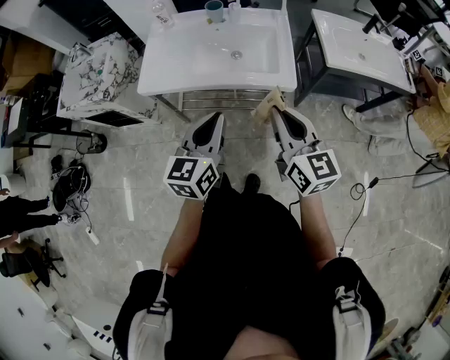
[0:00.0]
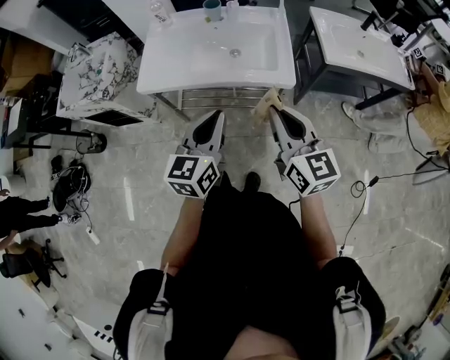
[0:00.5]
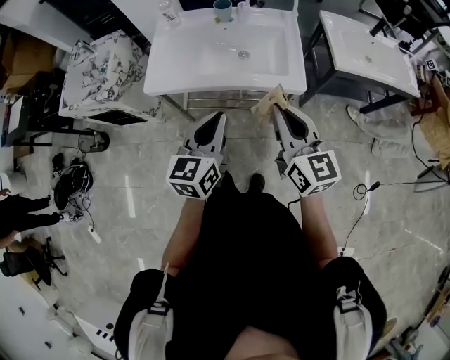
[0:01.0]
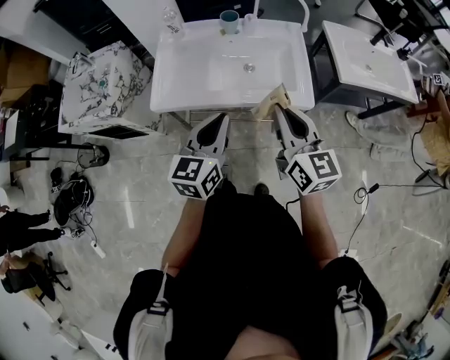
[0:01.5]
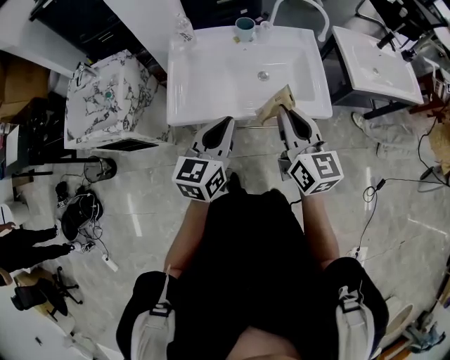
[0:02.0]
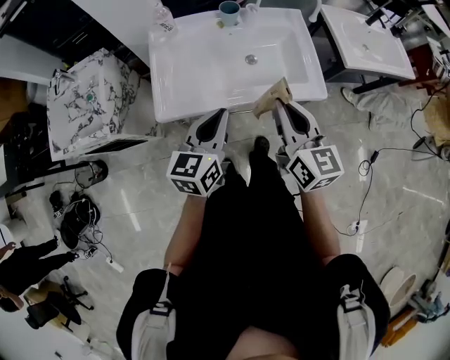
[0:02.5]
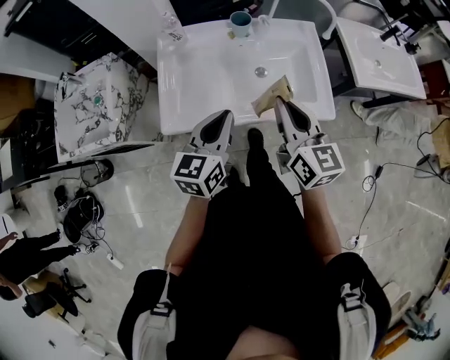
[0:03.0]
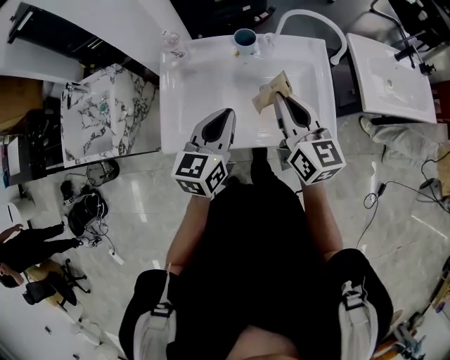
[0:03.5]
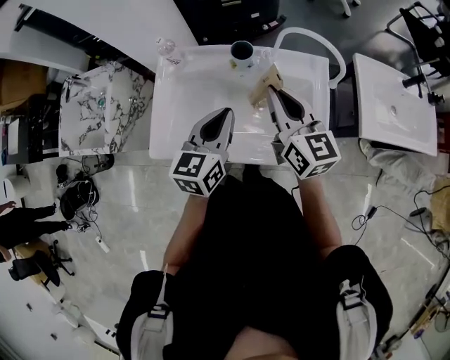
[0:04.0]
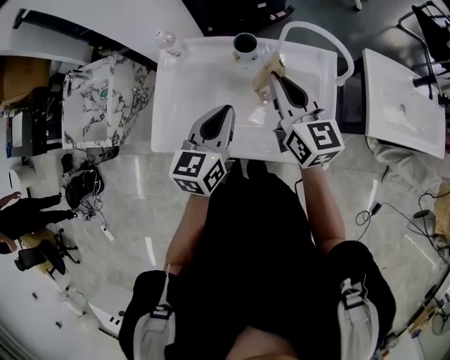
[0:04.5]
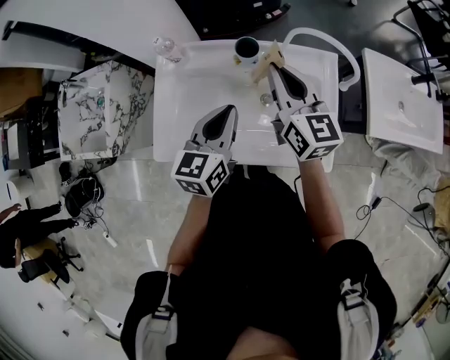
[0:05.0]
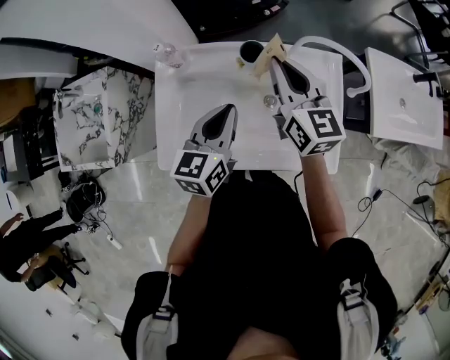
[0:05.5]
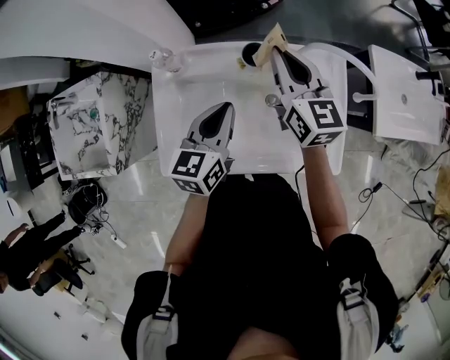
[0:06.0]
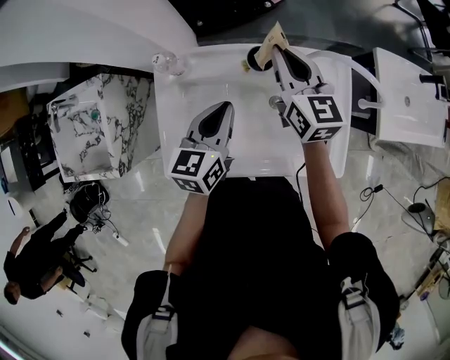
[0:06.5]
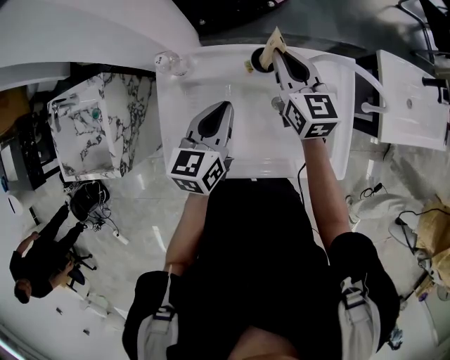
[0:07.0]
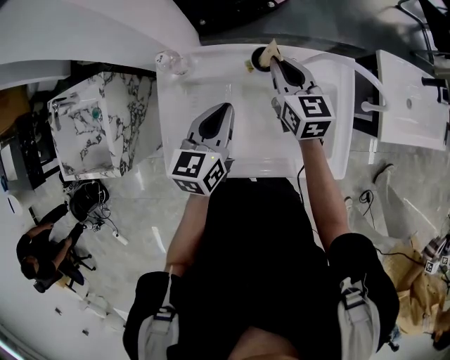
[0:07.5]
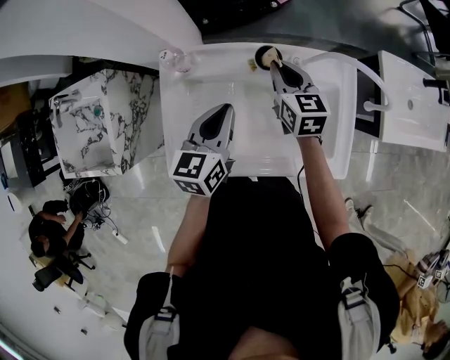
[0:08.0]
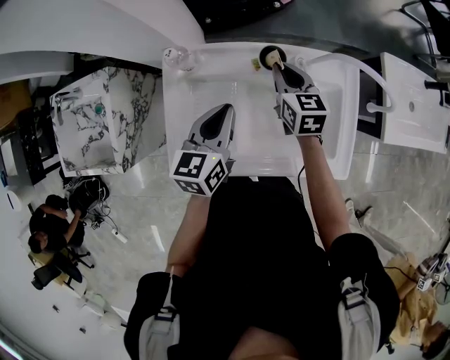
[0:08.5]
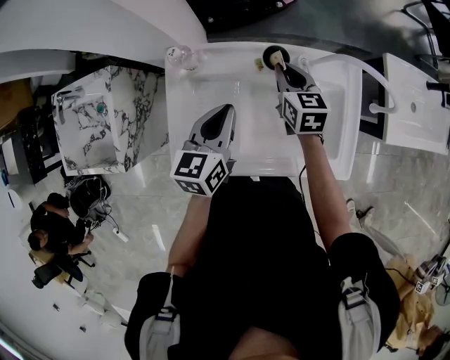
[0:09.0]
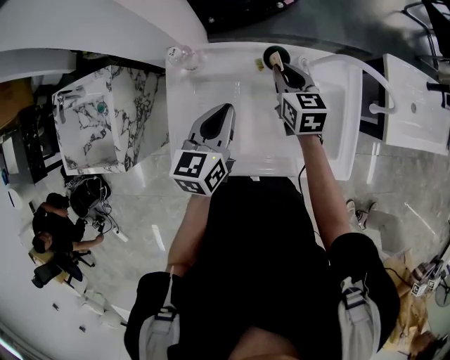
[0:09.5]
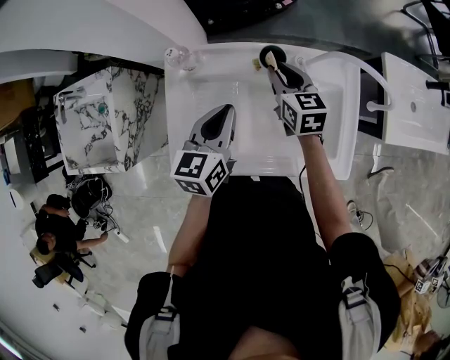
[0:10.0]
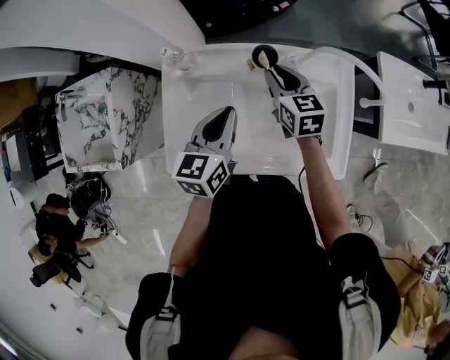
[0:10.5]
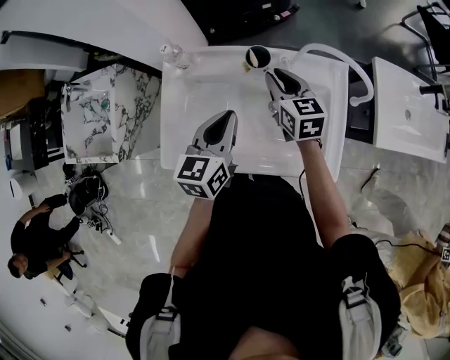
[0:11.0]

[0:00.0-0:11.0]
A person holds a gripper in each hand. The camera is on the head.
0.0 to 2.0 s: Both grippers move to the left and forward, approximately 20 cm.
2.0 to 3.5 s: Both grippers travel together forward, roughly 20 cm.
3.5 to 5.5 s: The right gripper shifts some 20 cm forward, while the left gripper goes about 10 cm forward.
5.5 to 7.5 s: The right gripper goes about 10 cm downward and forward. Meanwhile the left gripper changes place by about 5 cm.
7.5 to 9.0 s: The right gripper is displaced downward by some 5 cm.
9.0 to 11.0 s: The left gripper travels to the right by roughly 5 cm; the right gripper moves roughly 5 cm.

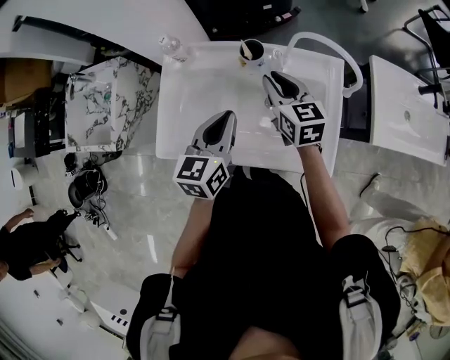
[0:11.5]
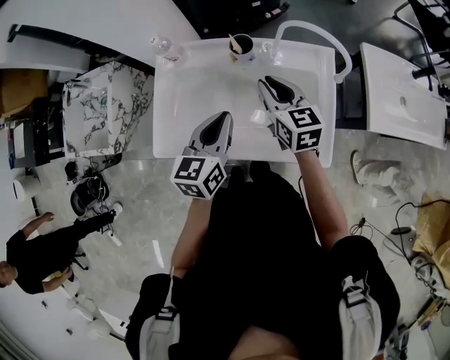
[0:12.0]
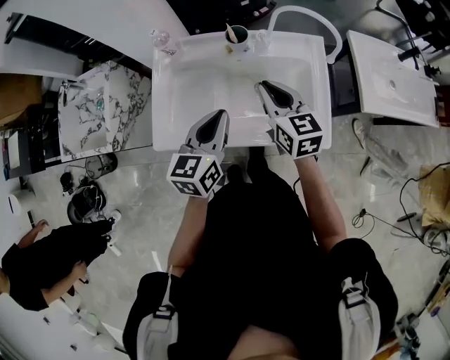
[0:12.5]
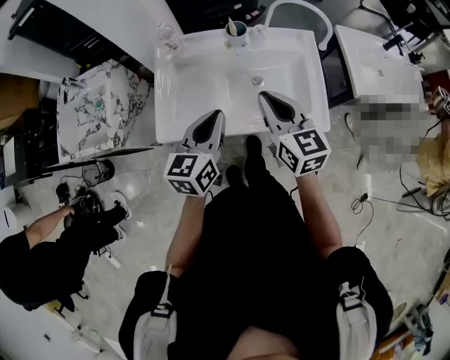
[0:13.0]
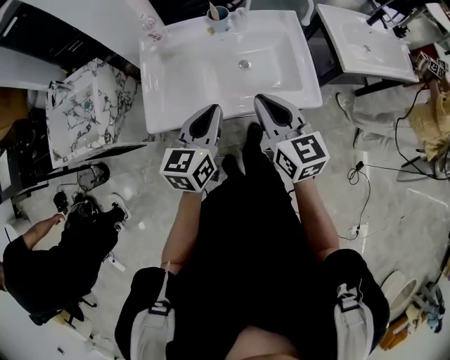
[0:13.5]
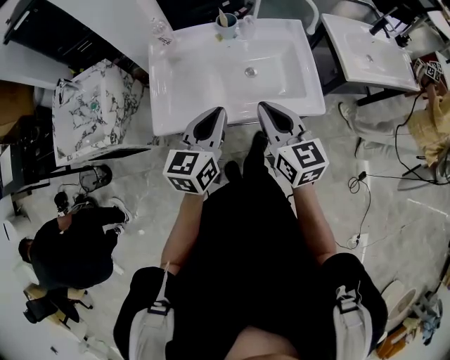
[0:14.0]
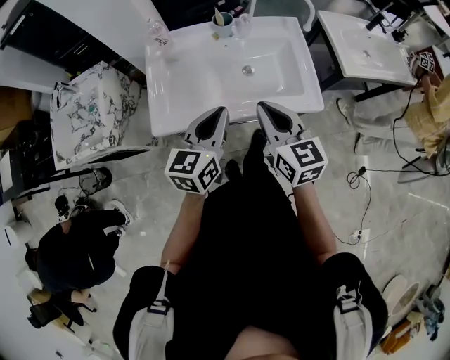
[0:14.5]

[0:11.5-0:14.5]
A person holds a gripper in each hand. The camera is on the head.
11.5 to 13.0 s: The left gripper shifts roughly 15 cm backward, while the right gripper heads backward and upward, covering approximately 25 cm.
13.0 to 14.5 s: The left gripper moves backward, some 5 cm; the right gripper travels backward by approximately 10 cm.

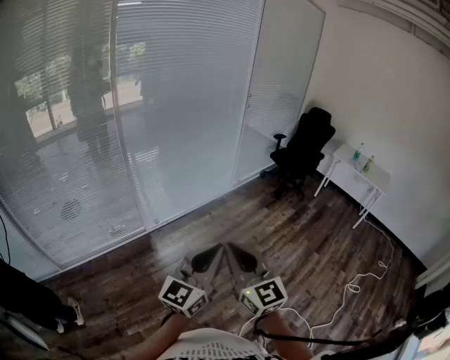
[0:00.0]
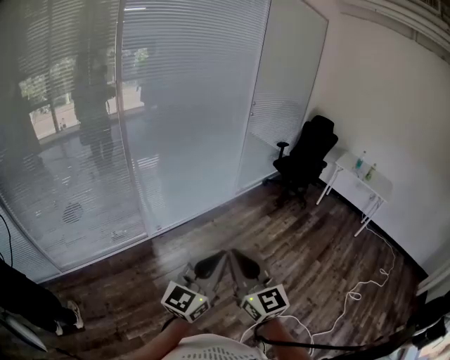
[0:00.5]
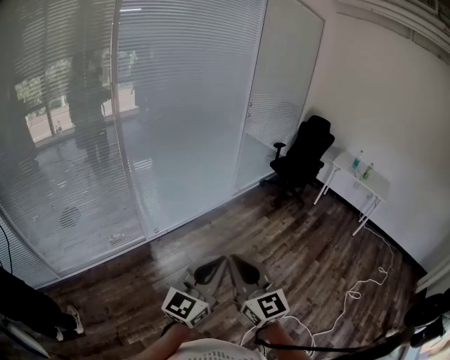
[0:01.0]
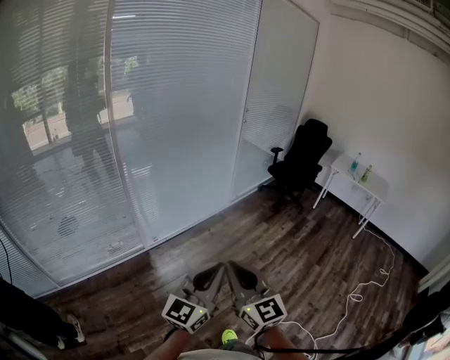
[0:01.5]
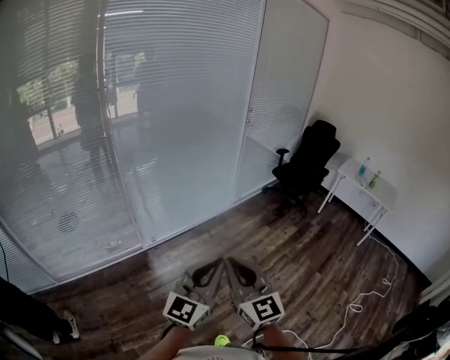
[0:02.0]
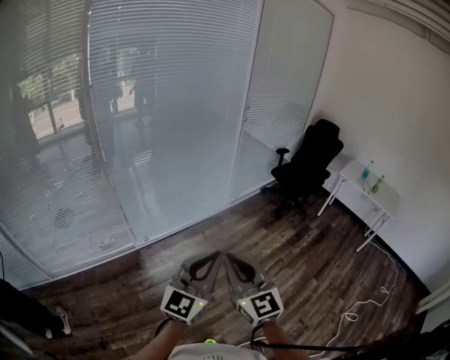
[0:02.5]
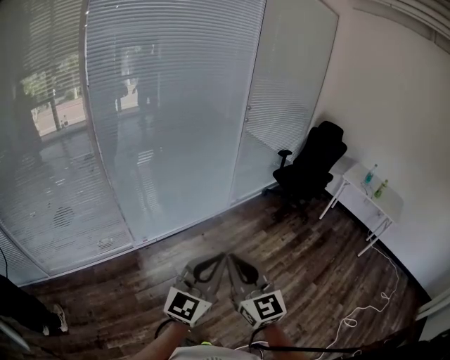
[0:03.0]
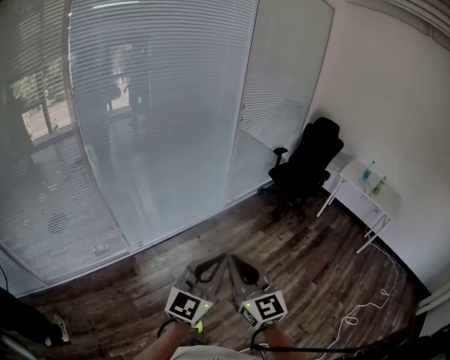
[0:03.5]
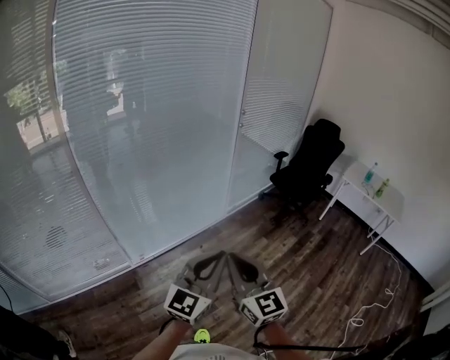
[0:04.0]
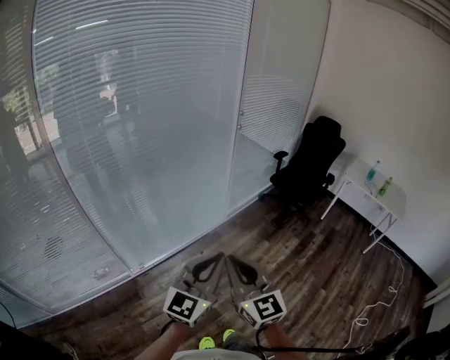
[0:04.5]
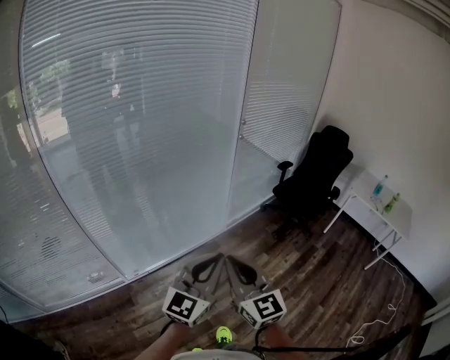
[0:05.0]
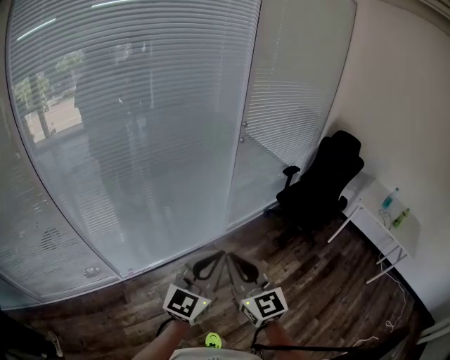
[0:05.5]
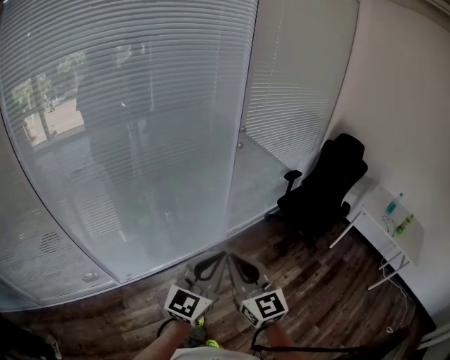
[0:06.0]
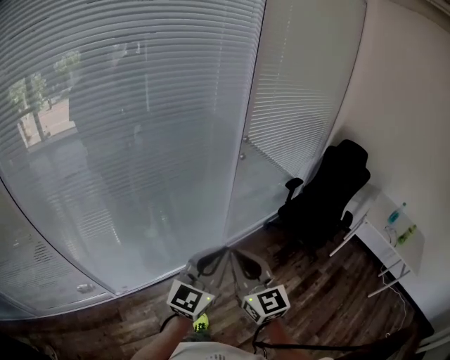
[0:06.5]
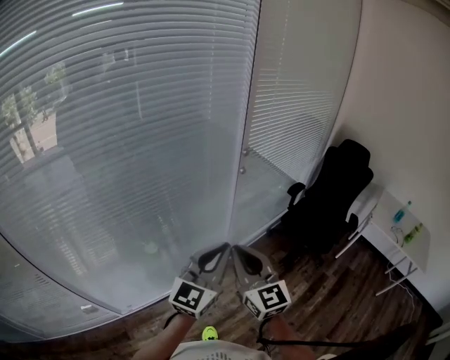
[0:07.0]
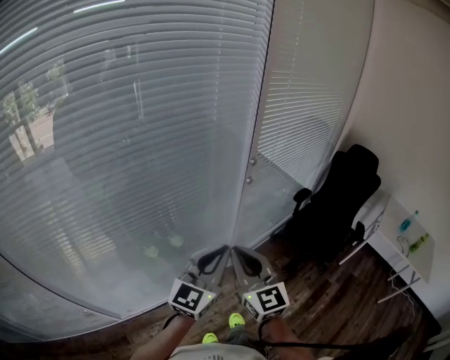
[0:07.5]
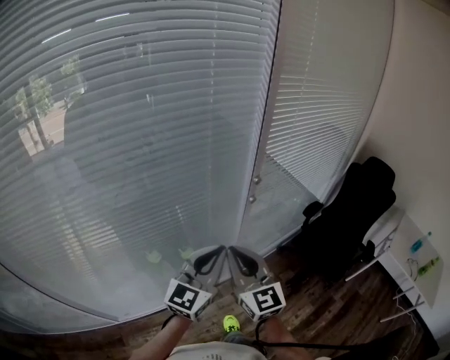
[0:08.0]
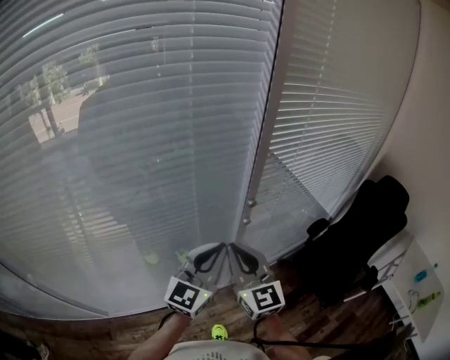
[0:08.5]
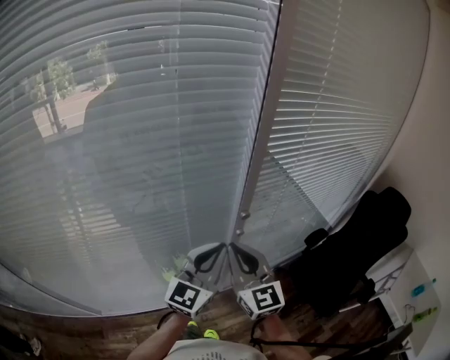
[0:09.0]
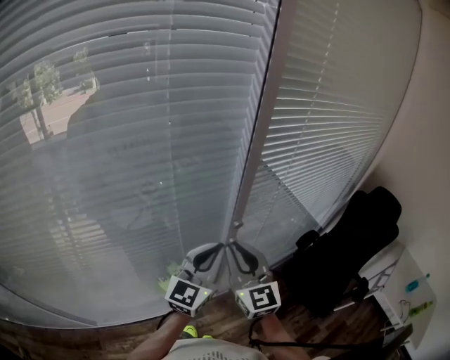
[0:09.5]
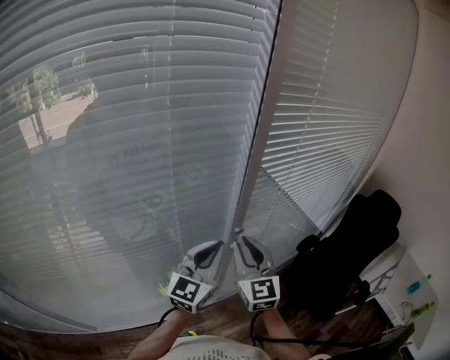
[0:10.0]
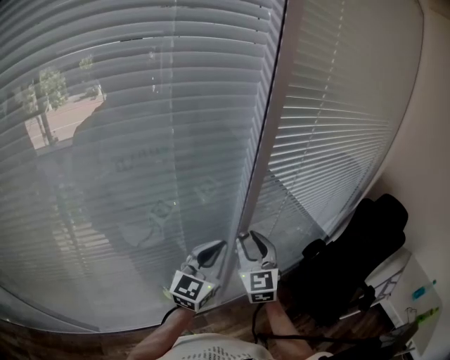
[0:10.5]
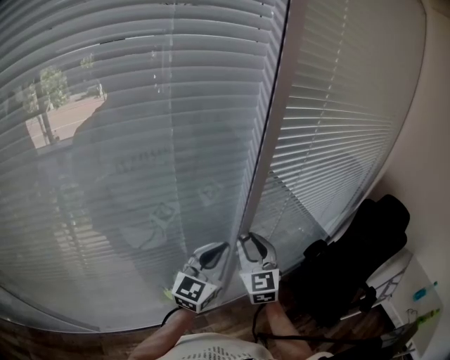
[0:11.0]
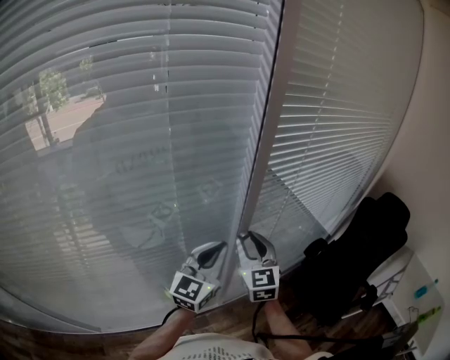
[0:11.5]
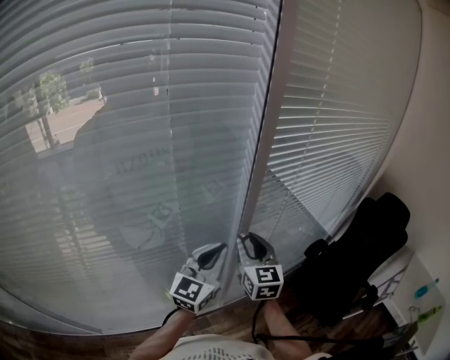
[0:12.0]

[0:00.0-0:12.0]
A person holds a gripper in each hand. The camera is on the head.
0.0 to 2.0 s: Both grippers travel together forward, about 10 cm.
2.0 to 4.0 s: The two grippers go about 30 cm forward.
4.0 to 6.0 s: The two grippers go some 35 cm forward.
6.0 to 8.0 s: The two grippers travel together, forward, approximately 50 cm.
8.0 to 10.0 s: The right gripper is displaced forward and to the right by roughly 25 cm, while the left gripper goes some 20 cm forward.
10.0 to 12.0 s: The right gripper shifts some 5 cm forward.

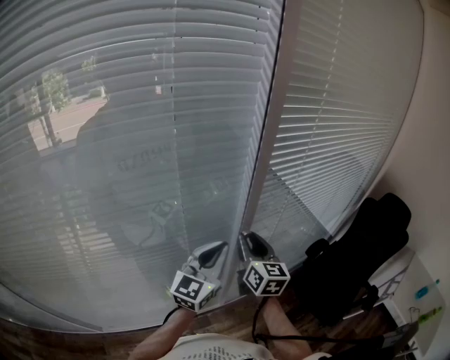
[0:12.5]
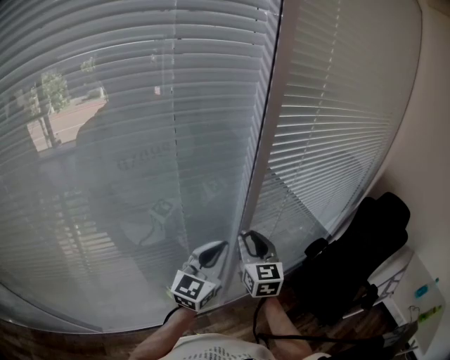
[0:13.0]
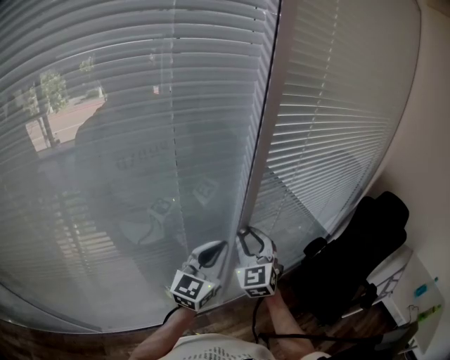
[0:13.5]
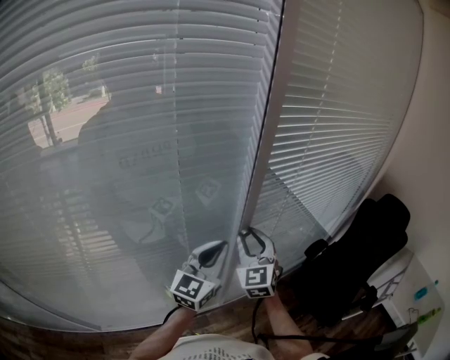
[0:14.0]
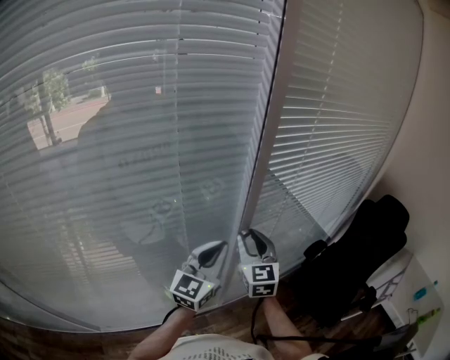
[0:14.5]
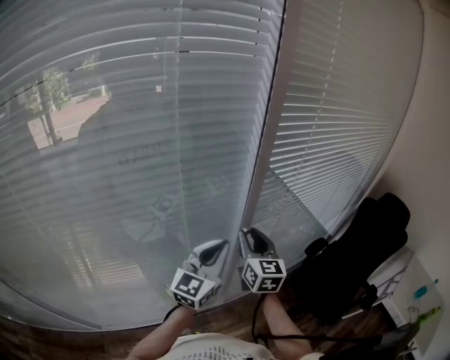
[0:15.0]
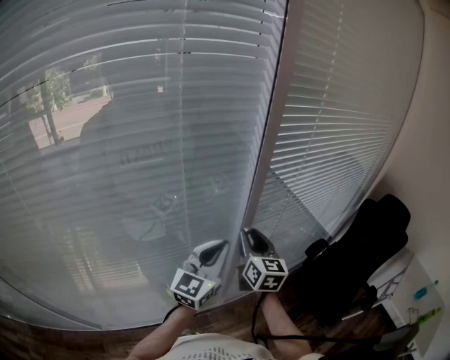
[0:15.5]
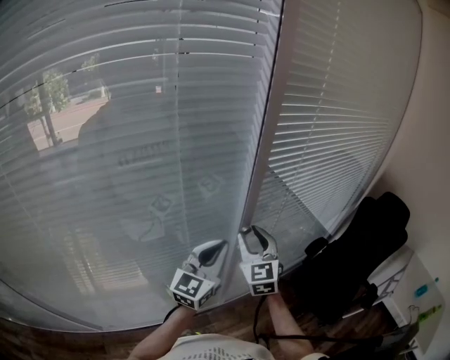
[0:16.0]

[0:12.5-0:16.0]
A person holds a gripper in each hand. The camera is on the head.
12.5 to 14.5 s: The right gripper swivels some 30 degrees.
